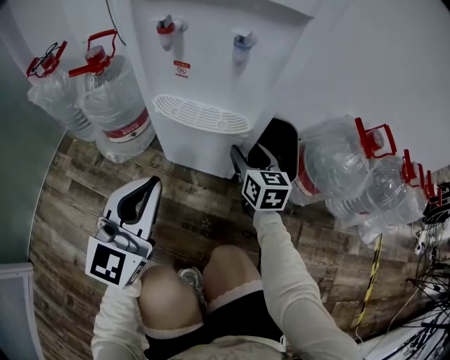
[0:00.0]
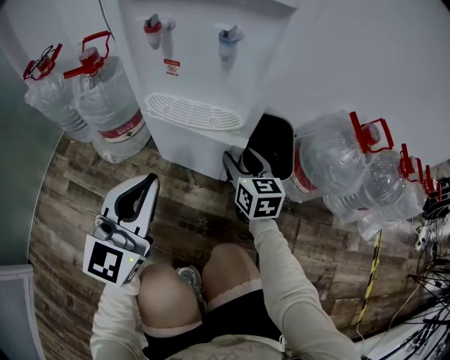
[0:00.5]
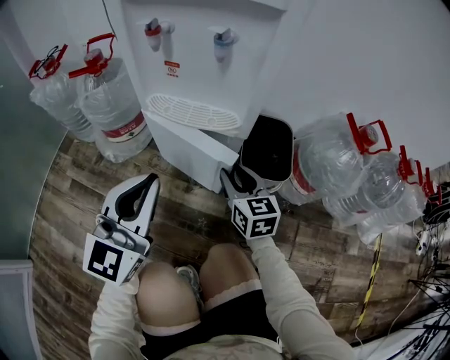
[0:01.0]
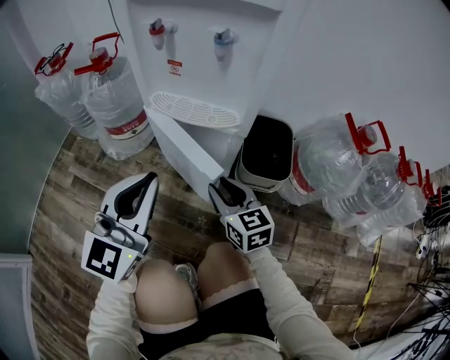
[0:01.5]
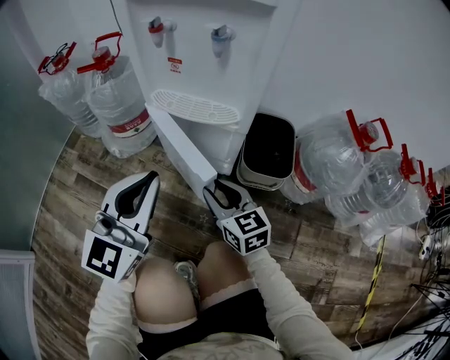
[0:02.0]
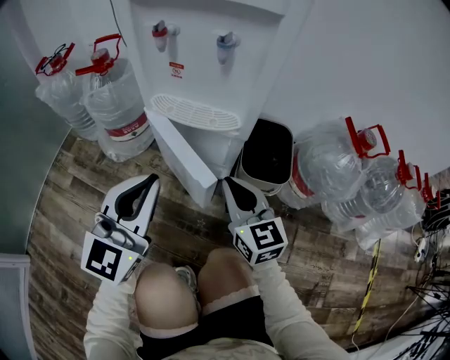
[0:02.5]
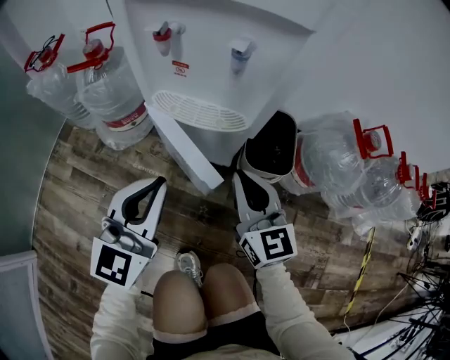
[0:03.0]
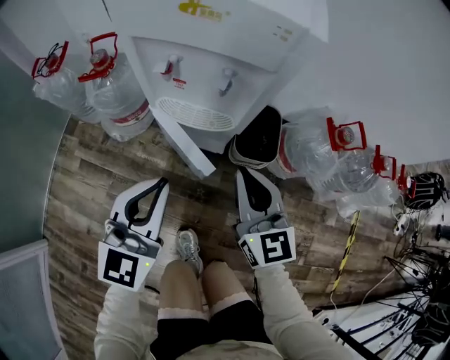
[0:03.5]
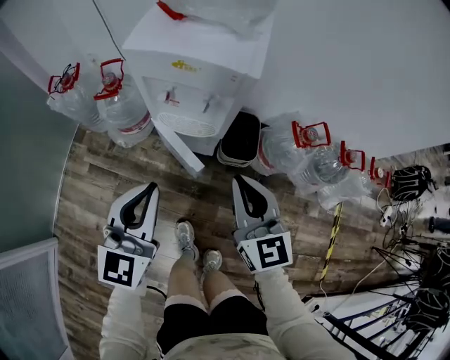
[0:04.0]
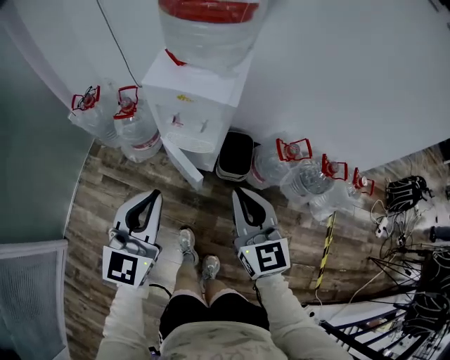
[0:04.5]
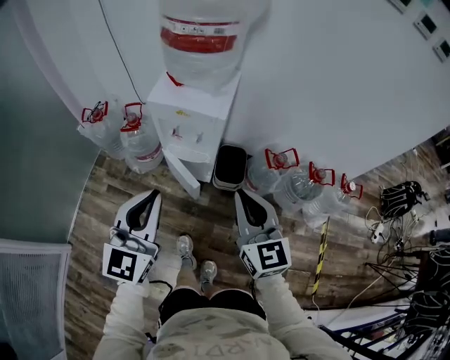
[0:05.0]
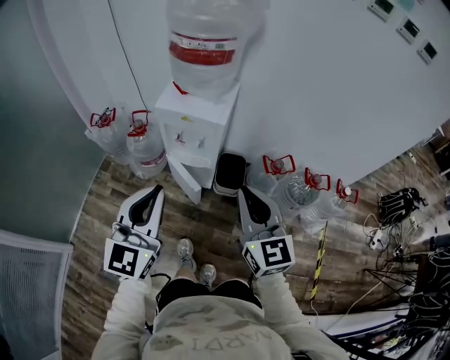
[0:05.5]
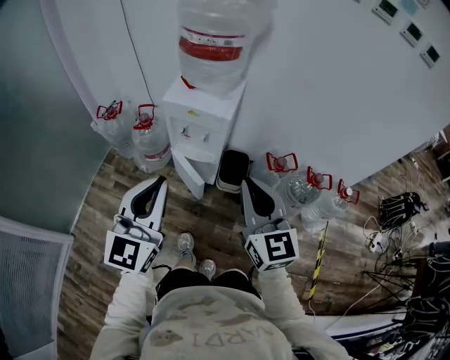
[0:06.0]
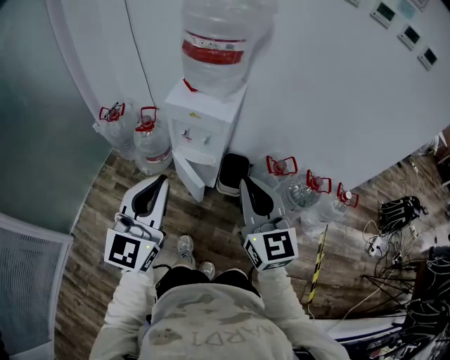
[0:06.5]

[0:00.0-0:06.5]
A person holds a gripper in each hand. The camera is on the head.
0:00.0 to 0:02.0: The right gripper travels backward and to the left by roughly 15 cm, turns by roughly 20 degrees, and closes.
0:02.0 to 0:04.5: Both grippers travel together upward, roughly 50 cm. The right gripper changes its angle by roughly 20 degrees, and closes up.
0:04.5 to 0:06.5: Both grippers travel together upward and backward, about 20 cm.

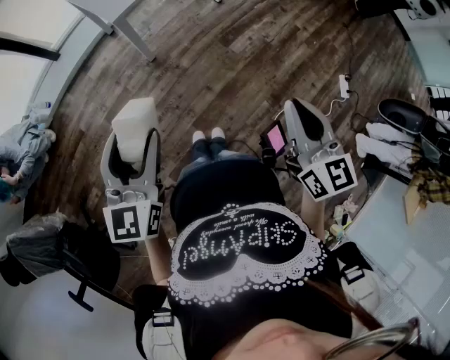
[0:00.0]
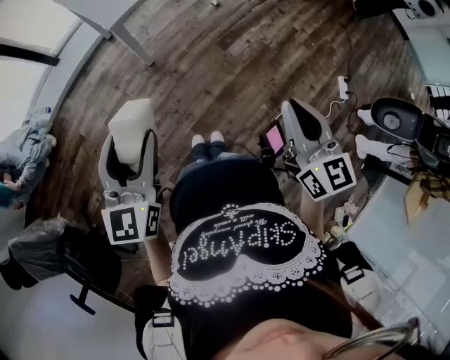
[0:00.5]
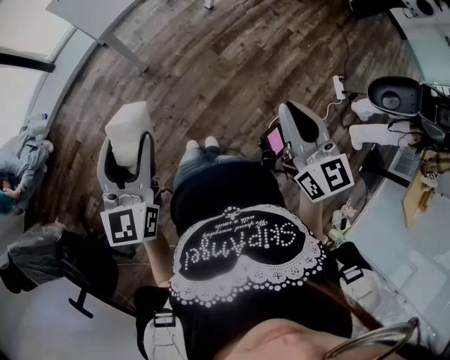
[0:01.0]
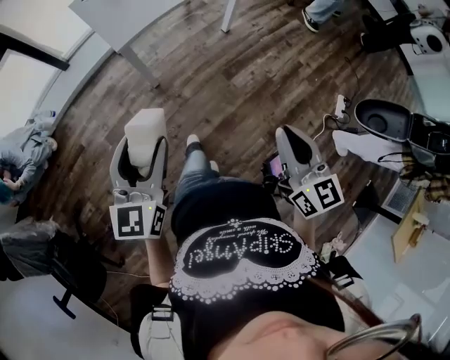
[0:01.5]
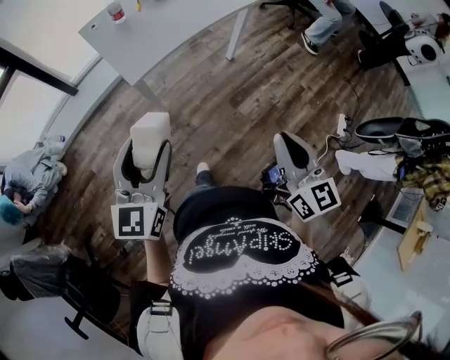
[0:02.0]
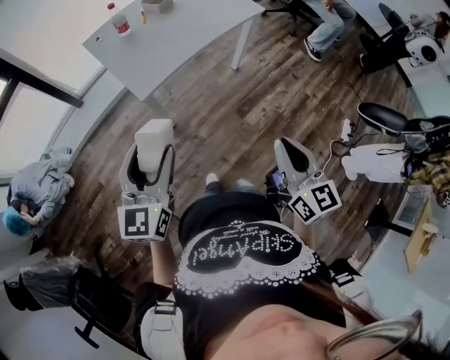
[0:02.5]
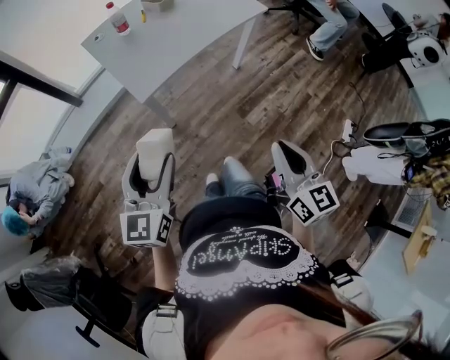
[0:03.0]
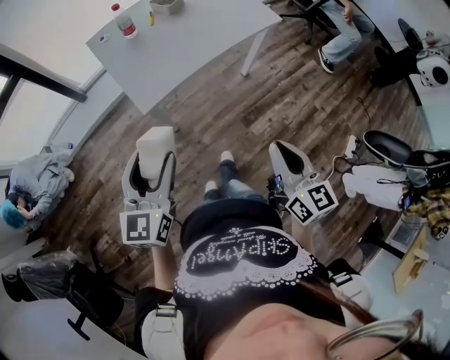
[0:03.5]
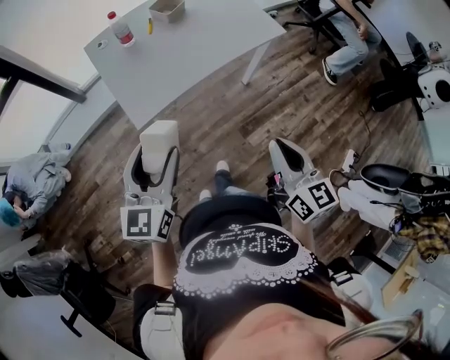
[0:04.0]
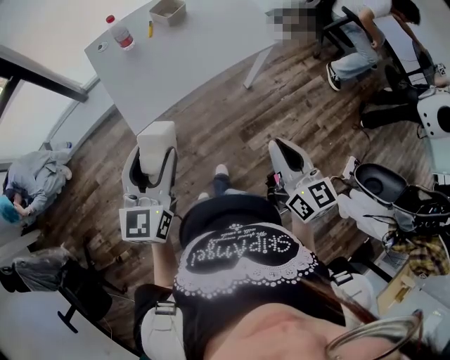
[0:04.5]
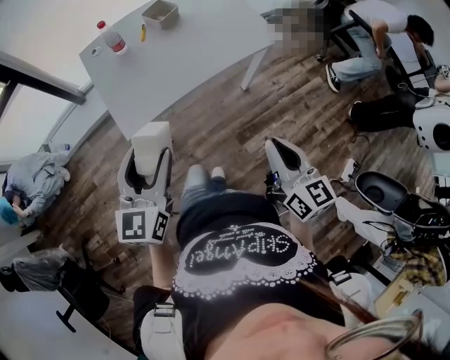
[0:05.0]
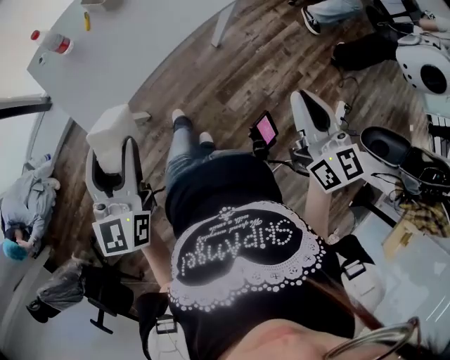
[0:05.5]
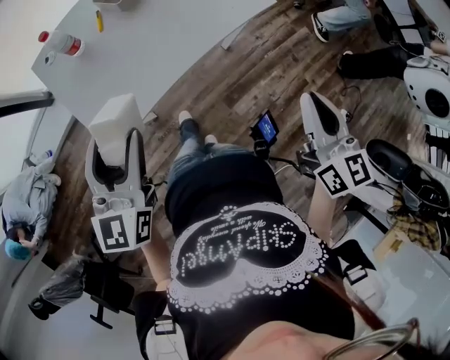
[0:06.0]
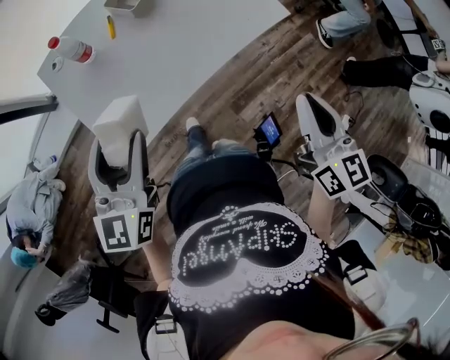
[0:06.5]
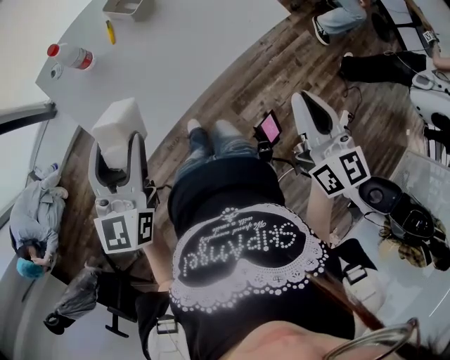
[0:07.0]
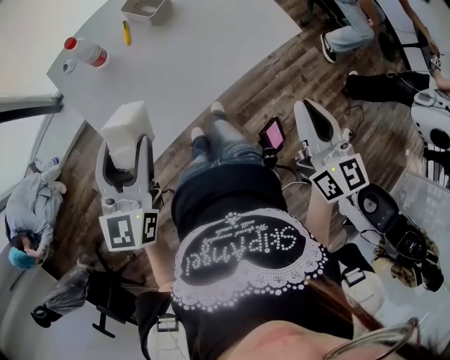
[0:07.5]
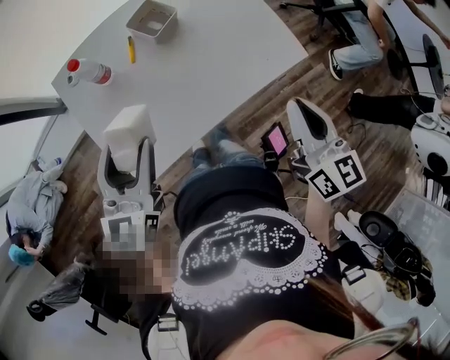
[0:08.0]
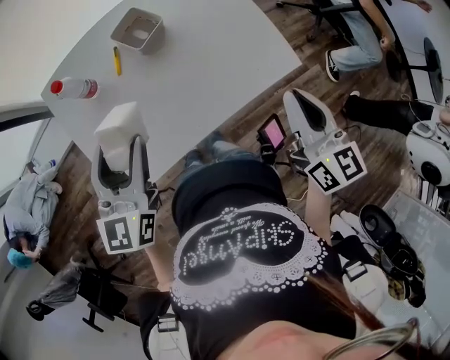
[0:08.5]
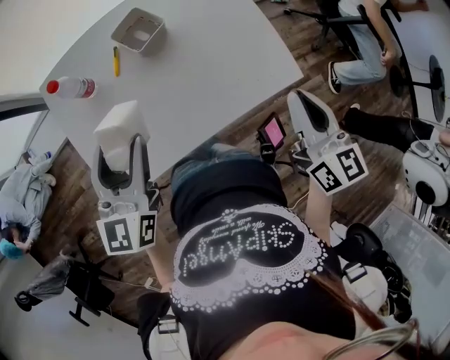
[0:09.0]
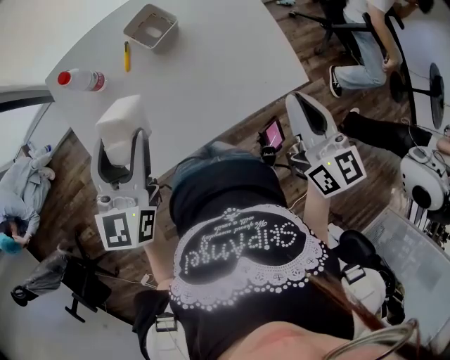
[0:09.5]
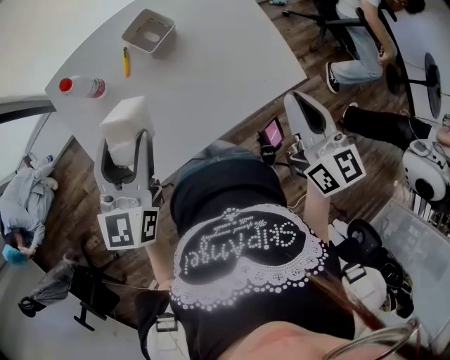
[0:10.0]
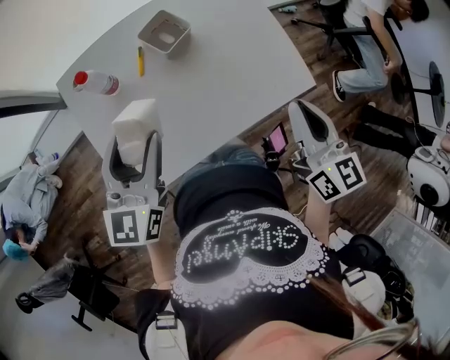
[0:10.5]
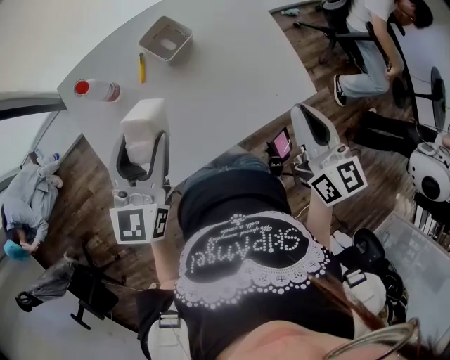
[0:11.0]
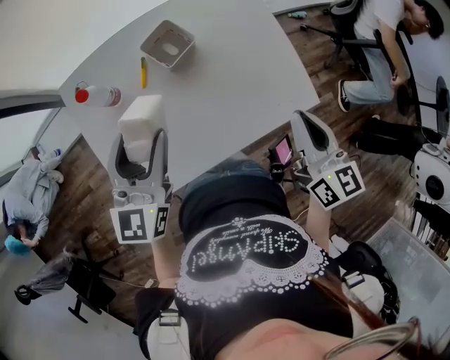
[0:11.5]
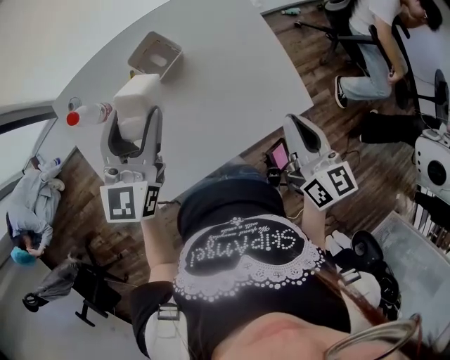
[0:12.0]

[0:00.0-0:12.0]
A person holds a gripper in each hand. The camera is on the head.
0:00.0 to 0:02.0: The two grippers go some 15 cm forward.
0:02.0 to 0:04.0: The grippers both shift forward by about 20 cm.
0:04.0 to 0:06.0: The right gripper shifts roughly 20 cm forward and to the right; the left gripper shifts about 20 cm forward.
0:06.0 to 0:08.0: The left gripper moves forward, some 15 cm, while the right gripper is displaced forward and to the left by about 20 cm.
0:08.0 to 0:10.0: Both grippers move forward, approximately 10 cm.
0:10.0 to 0:12.0: The right gripper travels forward by roughly 5 cm; the left gripper goes some 10 cm forward.

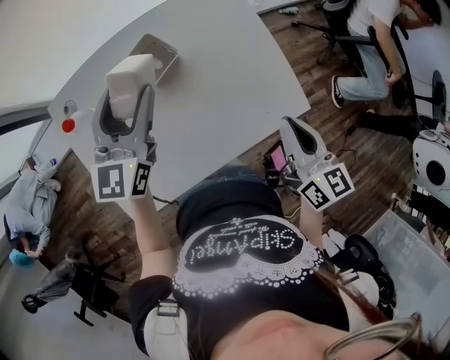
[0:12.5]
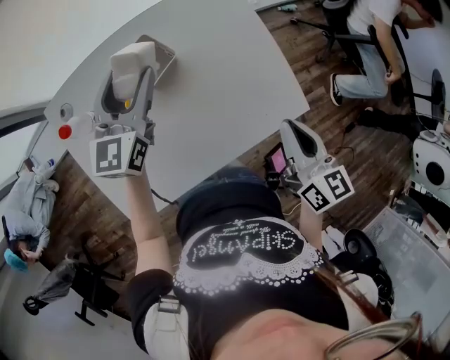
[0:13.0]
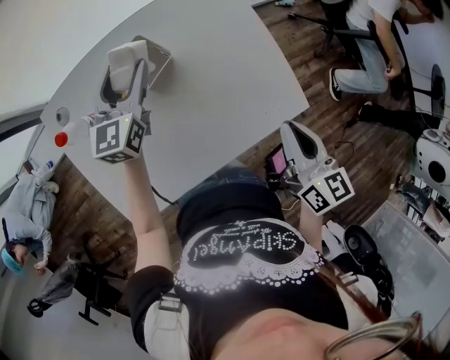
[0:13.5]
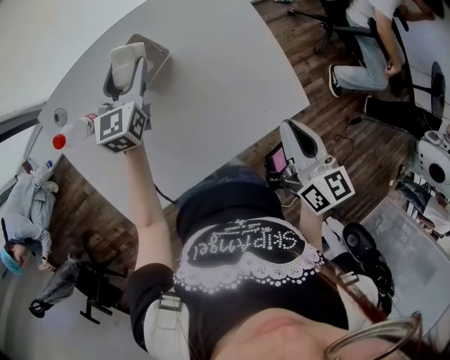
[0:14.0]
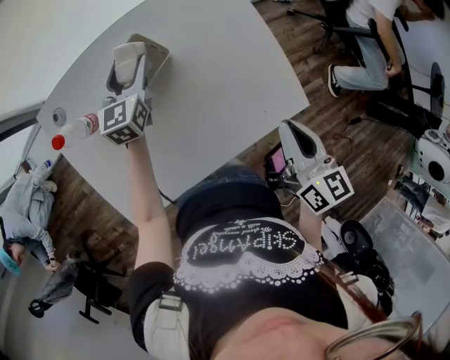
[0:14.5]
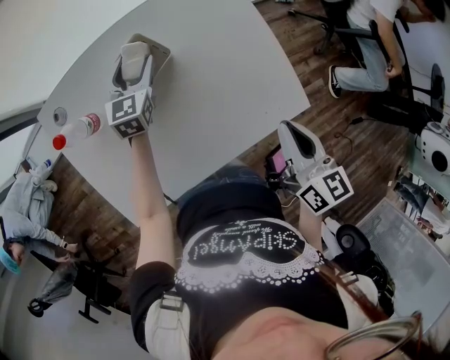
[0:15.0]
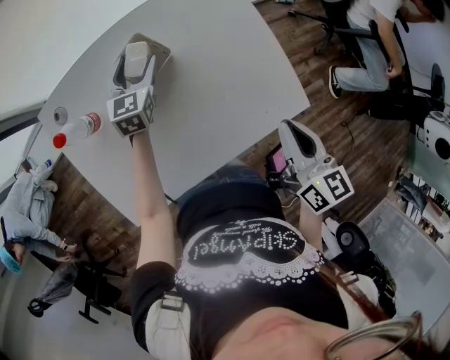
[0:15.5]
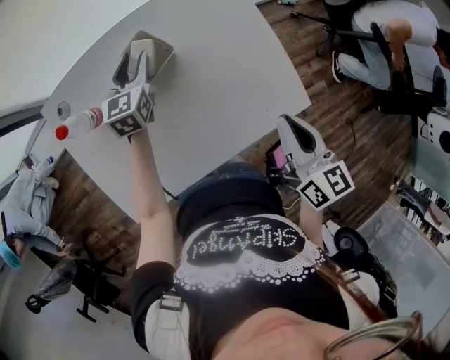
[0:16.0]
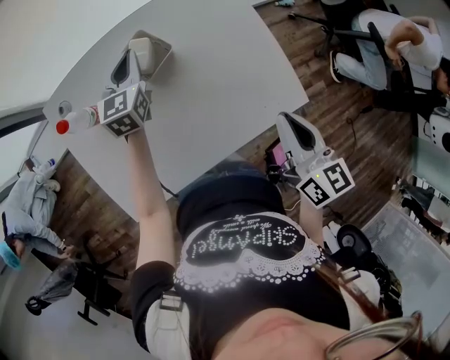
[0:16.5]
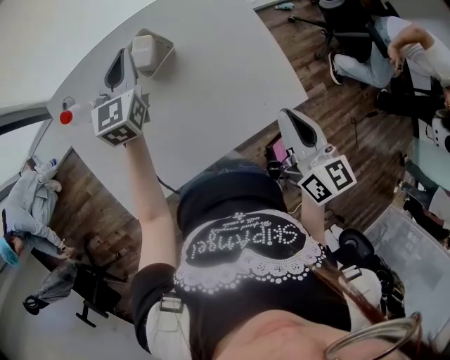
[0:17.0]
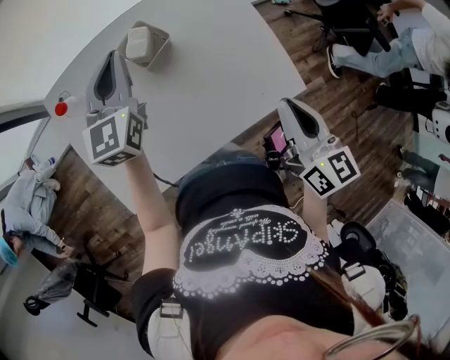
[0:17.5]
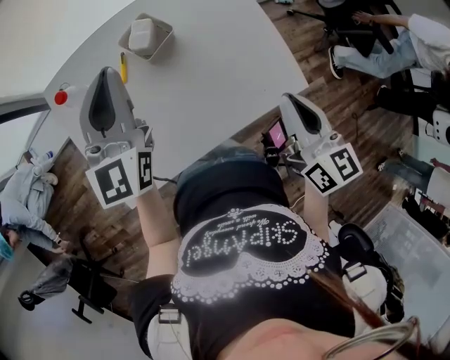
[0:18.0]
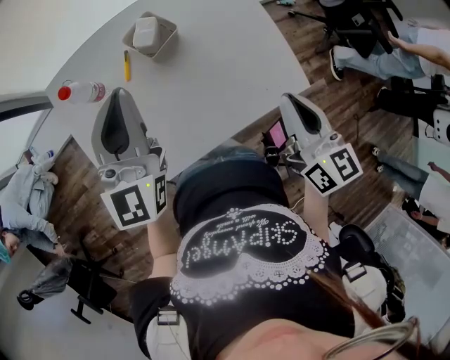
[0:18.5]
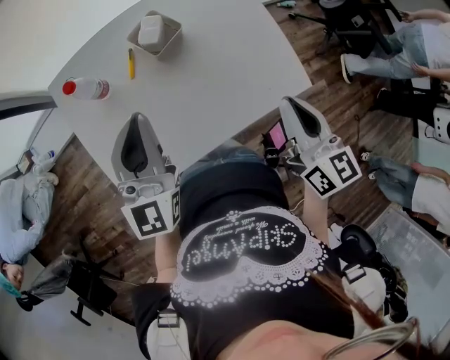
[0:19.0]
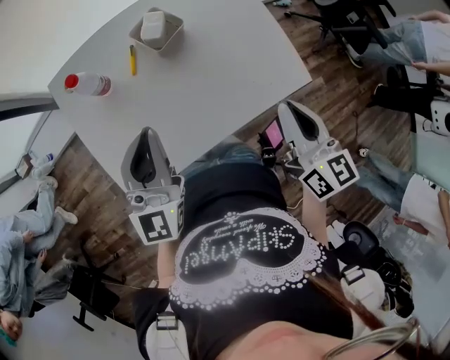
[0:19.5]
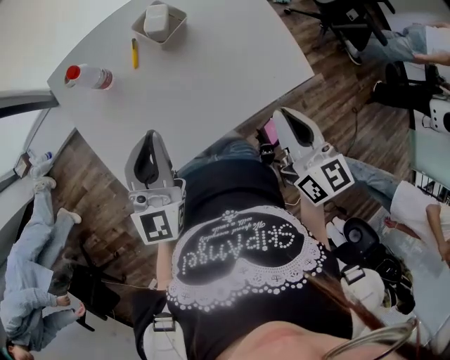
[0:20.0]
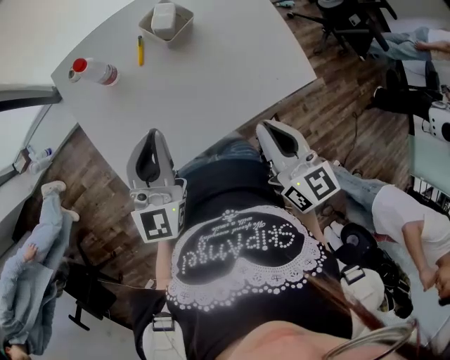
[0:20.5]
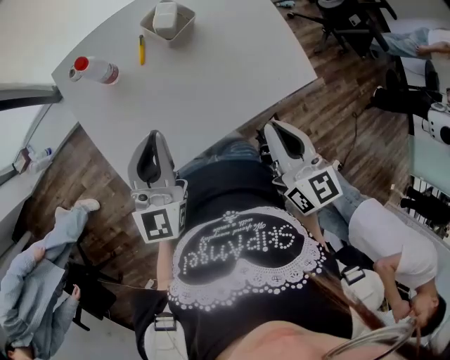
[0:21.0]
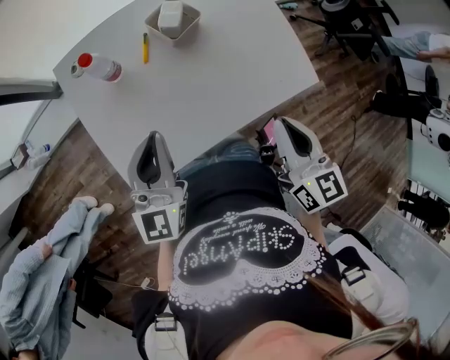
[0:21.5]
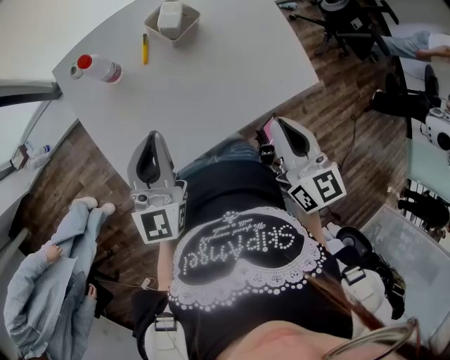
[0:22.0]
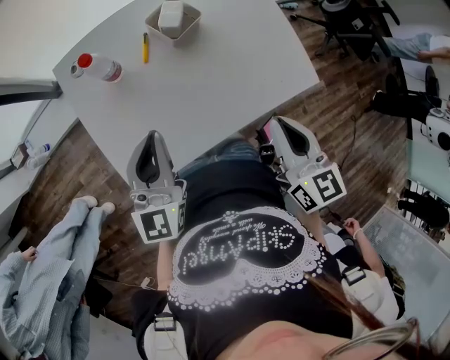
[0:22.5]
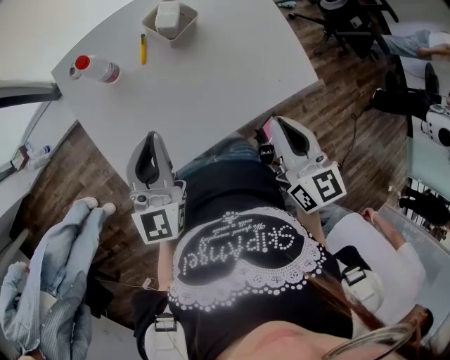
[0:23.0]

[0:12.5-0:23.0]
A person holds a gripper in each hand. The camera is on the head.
0:12.5 to 0:14.5: The left gripper moves downward and forward, roughly 20 cm.
0:14.5 to 0:16.5: The left gripper closes.
0:16.5 to 0:19.0: The left gripper shifts some 30 cm backward and upward, and turns by roughly 20 degrees. Meanwhile the right gripper changes place by roughly 5 cm.
0:19.0 to 0:21.0: The right gripper is displaced to the left and backward by about 10 cm, while the left gripper moves backward and downward, about 10 cm.
0:21.0 to 0:23.0: The grippers move only a little.
